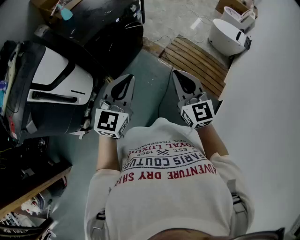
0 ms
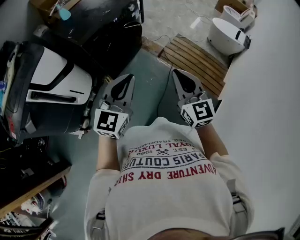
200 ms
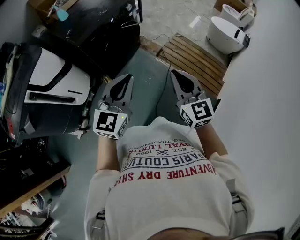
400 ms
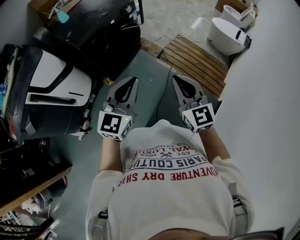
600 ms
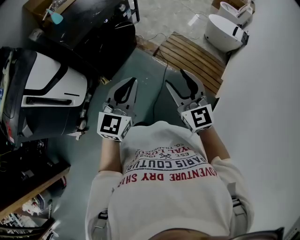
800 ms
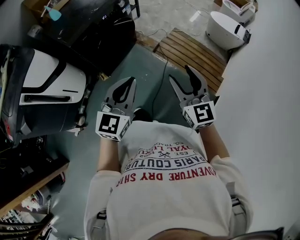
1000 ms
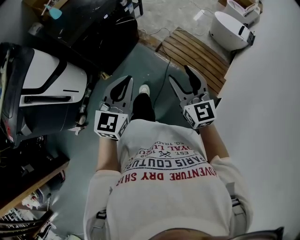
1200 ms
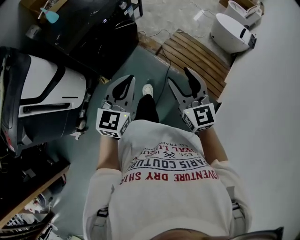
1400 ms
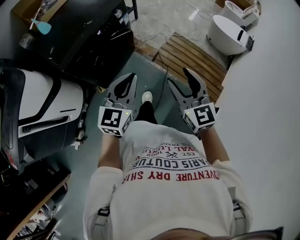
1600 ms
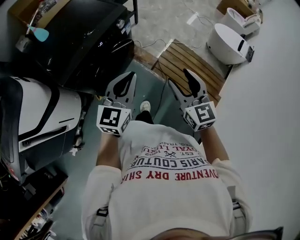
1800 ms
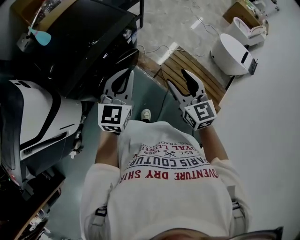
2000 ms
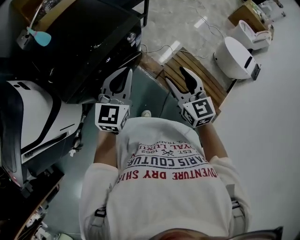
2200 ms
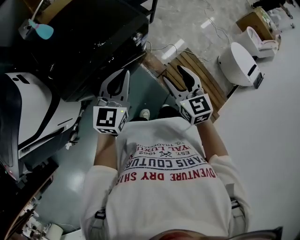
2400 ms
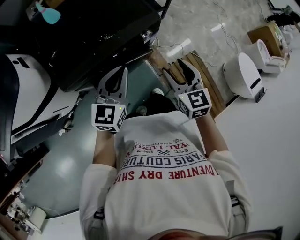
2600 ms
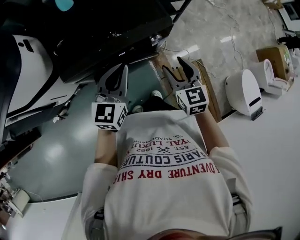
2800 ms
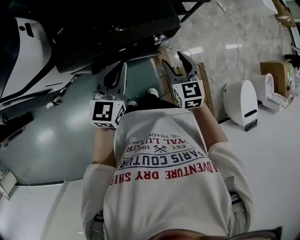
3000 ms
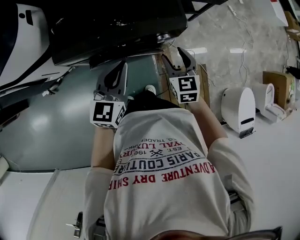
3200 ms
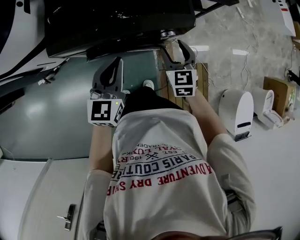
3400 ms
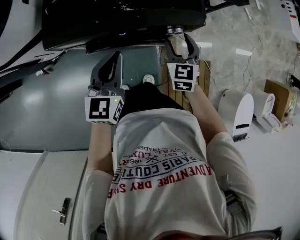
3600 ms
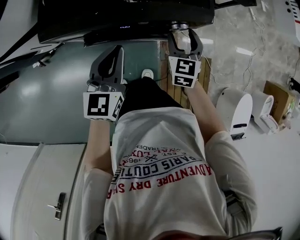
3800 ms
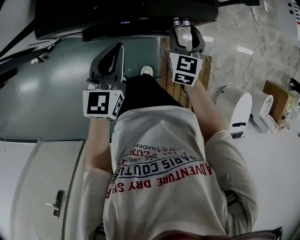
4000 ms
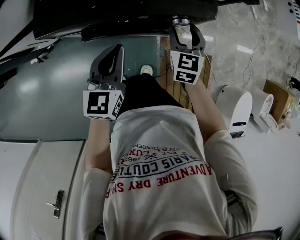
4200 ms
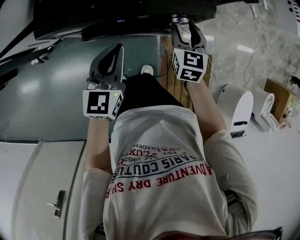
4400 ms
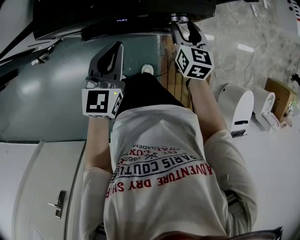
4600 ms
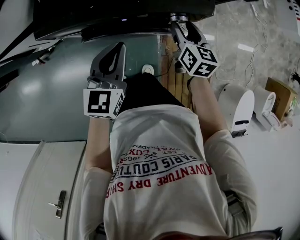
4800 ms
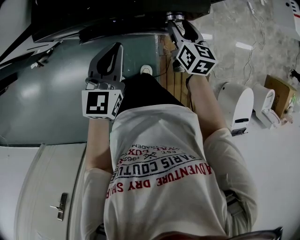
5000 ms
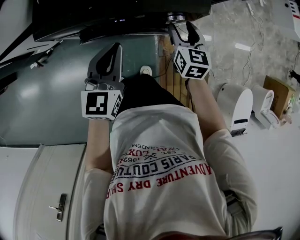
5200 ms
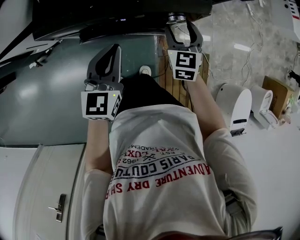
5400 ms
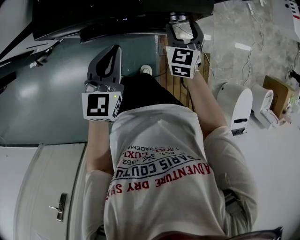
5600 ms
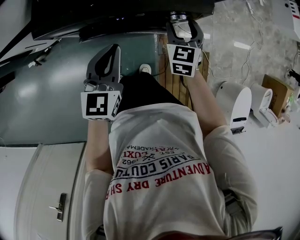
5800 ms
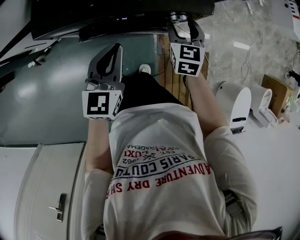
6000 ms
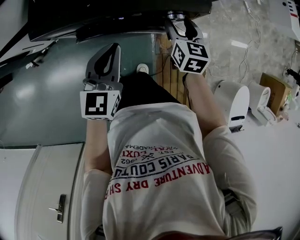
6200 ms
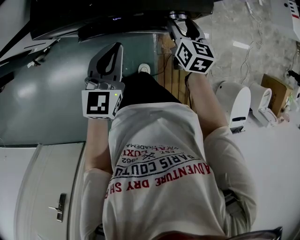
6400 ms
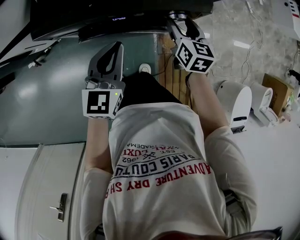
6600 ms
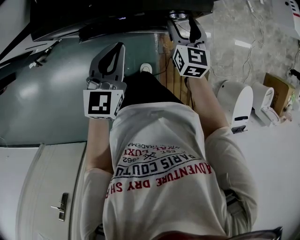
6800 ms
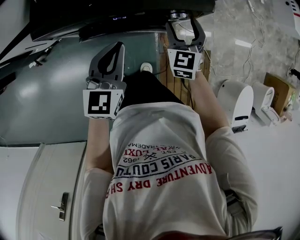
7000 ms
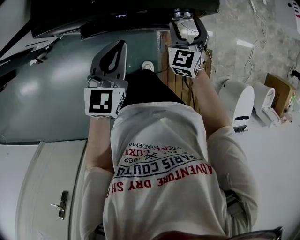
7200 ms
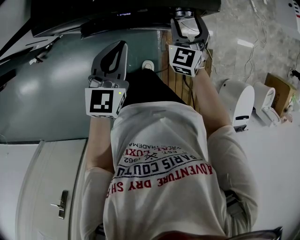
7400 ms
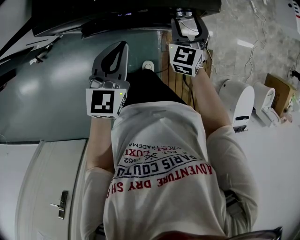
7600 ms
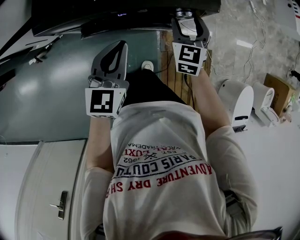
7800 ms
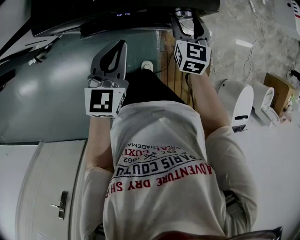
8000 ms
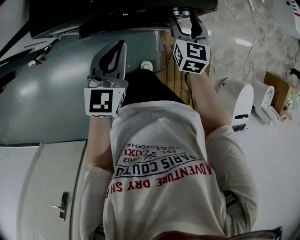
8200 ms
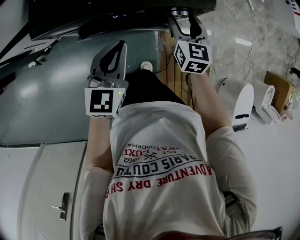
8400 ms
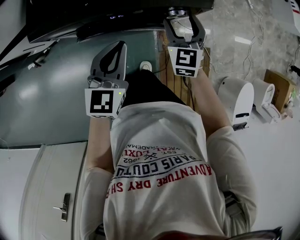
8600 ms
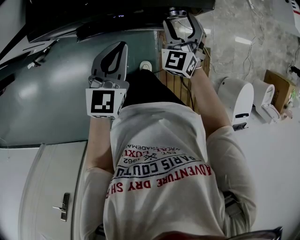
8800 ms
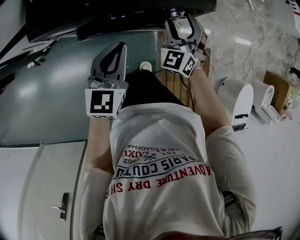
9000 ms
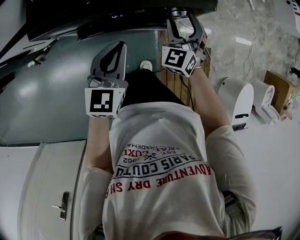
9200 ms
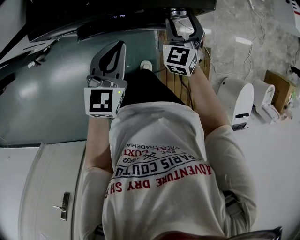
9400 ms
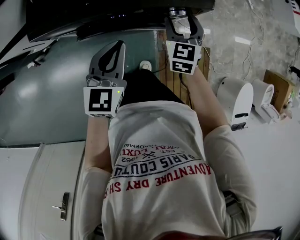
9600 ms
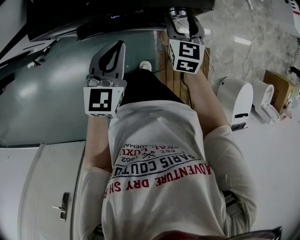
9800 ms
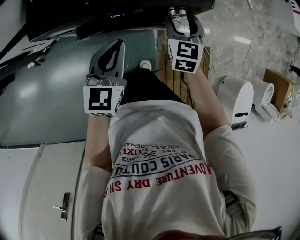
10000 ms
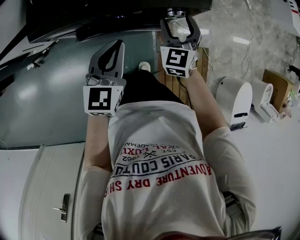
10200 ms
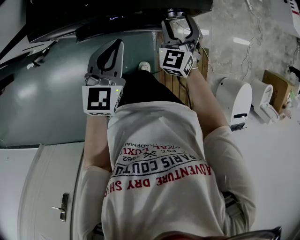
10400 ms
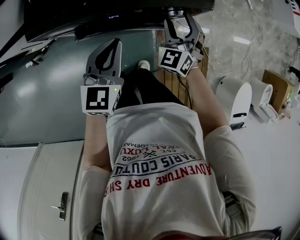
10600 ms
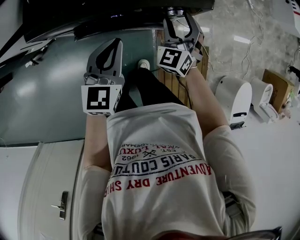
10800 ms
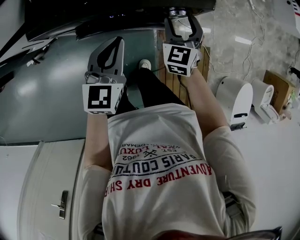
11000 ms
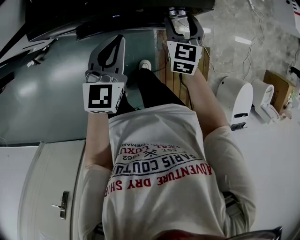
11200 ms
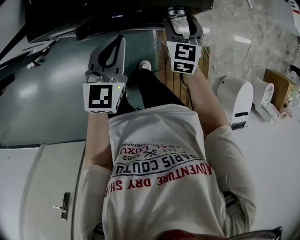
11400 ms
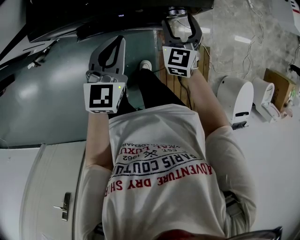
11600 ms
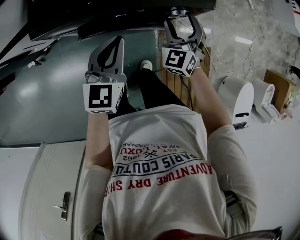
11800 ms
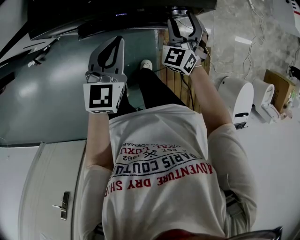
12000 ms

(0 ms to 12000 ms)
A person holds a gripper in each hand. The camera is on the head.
0 ms - 1600 ms: Both grippers travel together forward, about 20 cm. The right gripper opens its fingers.
1600 ms - 3000 ms: The right gripper changes place by some 50 cm, and changes its angle by approximately 40 degrees. The left gripper shifts by approximately 35 cm, and changes its angle by approximately 40 degrees.
3000 ms - 4400 ms: The right gripper shifts roughly 15 cm downward and forward; the left gripper travels downward by approximately 10 cm.

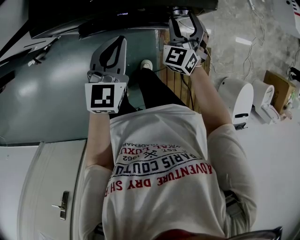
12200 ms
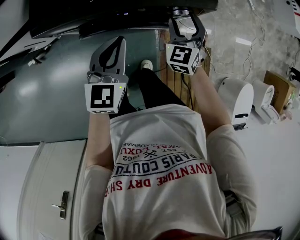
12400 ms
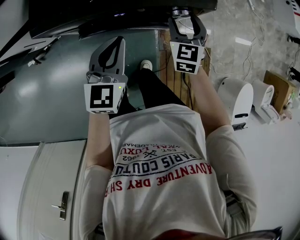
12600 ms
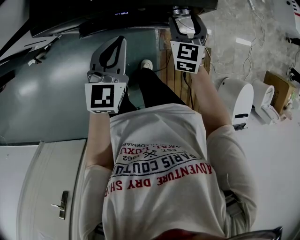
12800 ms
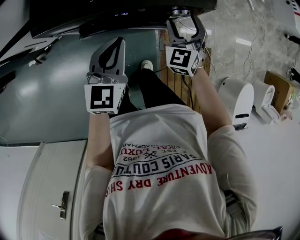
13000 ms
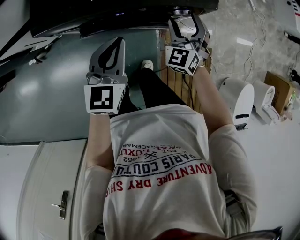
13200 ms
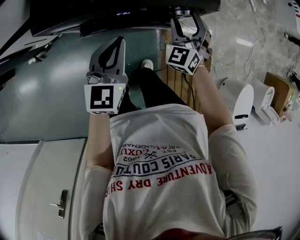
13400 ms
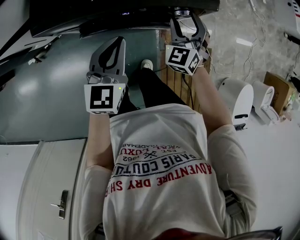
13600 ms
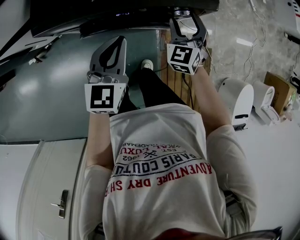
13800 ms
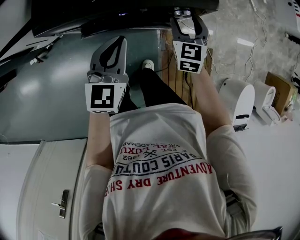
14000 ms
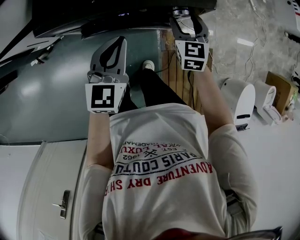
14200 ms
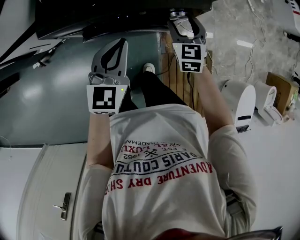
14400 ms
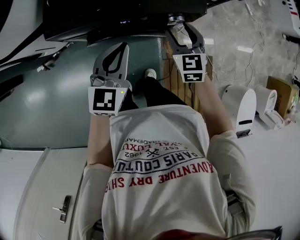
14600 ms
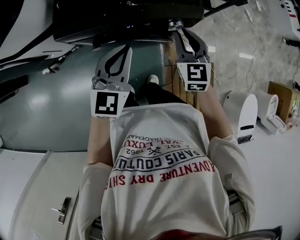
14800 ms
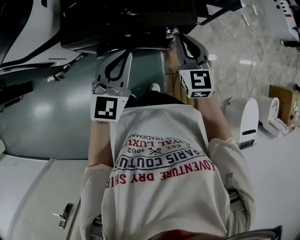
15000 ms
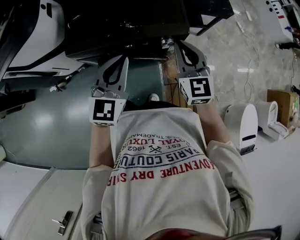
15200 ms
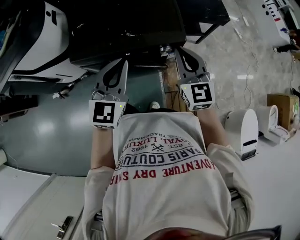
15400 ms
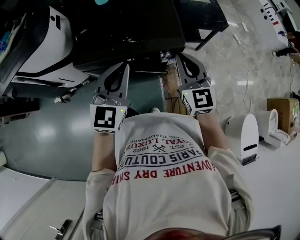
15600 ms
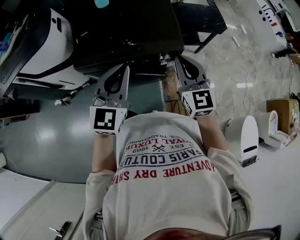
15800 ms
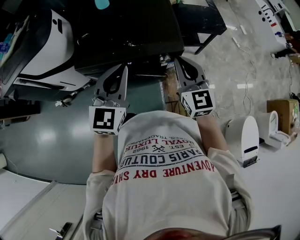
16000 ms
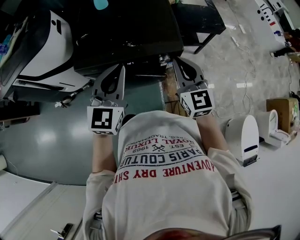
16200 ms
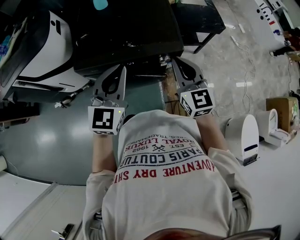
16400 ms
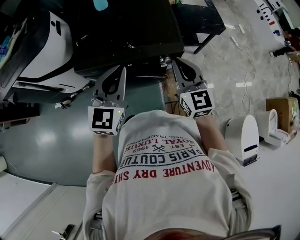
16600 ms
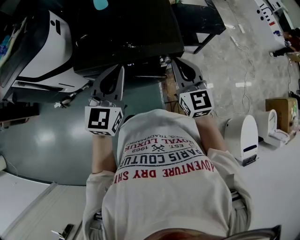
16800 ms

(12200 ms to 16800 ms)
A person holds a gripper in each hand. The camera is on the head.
13800 ms - 15200 ms: Both grippers travel together upward, about 20 cm. The right gripper swivels approximately 30 degrees, and closes its fingers.
15200 ms - 16800 ms: The left gripper shifts approximately 5 cm upward.

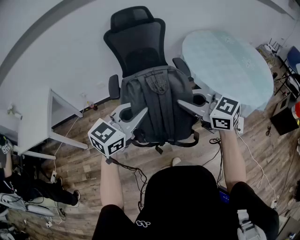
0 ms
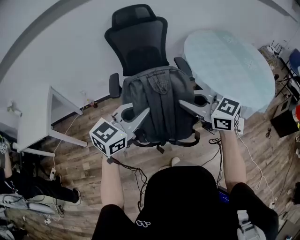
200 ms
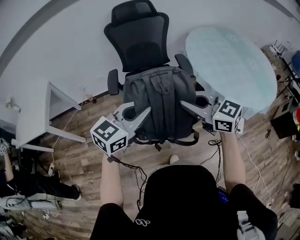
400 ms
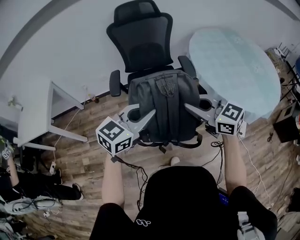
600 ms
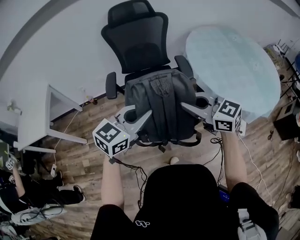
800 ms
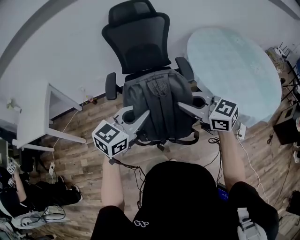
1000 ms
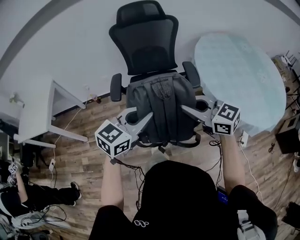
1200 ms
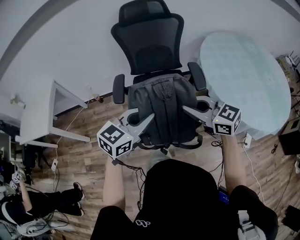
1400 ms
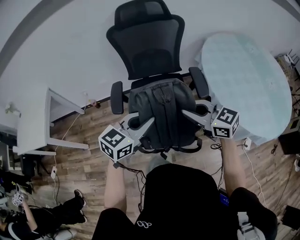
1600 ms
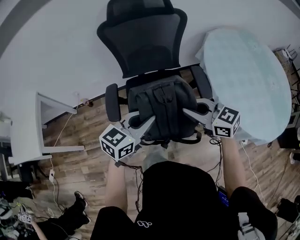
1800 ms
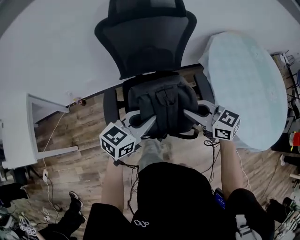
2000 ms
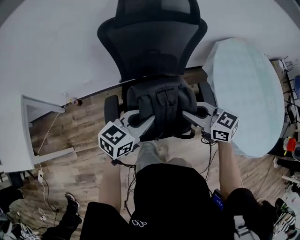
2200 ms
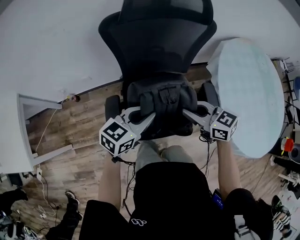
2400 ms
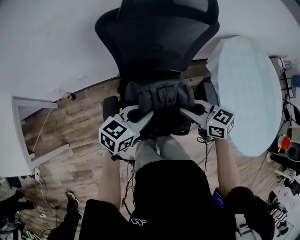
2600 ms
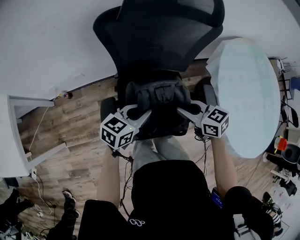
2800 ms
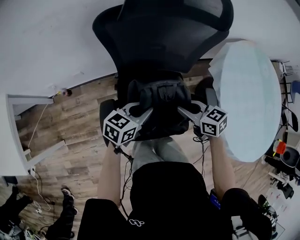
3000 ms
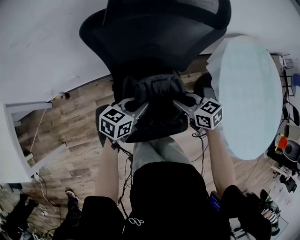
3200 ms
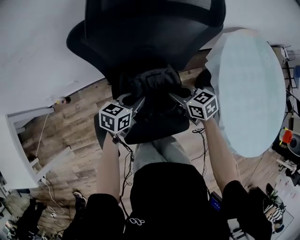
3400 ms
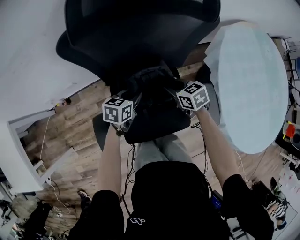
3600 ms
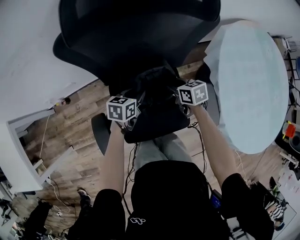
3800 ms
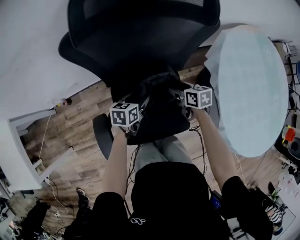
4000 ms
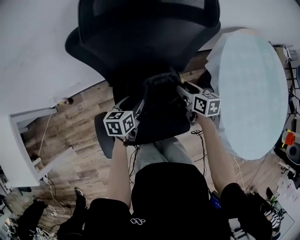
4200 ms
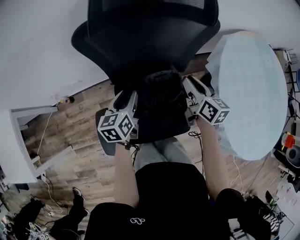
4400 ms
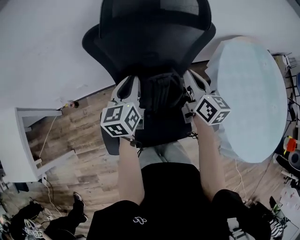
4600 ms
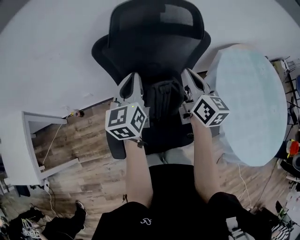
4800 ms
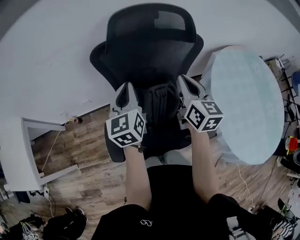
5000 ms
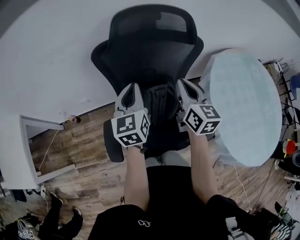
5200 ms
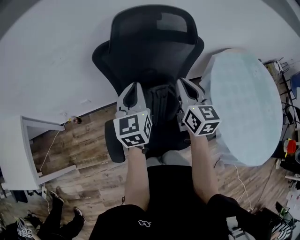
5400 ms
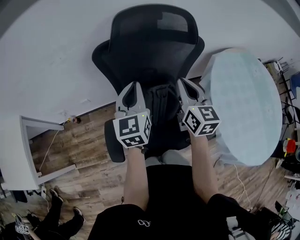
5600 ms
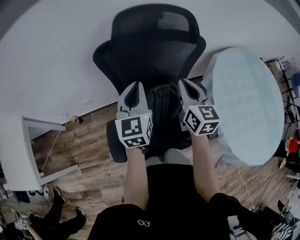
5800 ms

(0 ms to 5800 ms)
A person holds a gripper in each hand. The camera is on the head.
0 ms - 1400 ms: The two grippers go approximately 15 cm forward and downward.
1400 ms - 2800 ms: Both grippers move forward and downward, approximately 40 cm. The right gripper turns by roughly 30 degrees; the left gripper turns by some 30 degrees.
2800 ms - 4400 ms: The right gripper moves forward and to the right, some 20 cm, travels downward and back again, some 15 cm each way, changes its angle by about 40 degrees, and opens and closes again; the left gripper moves forward, about 15 cm, goes downward and returns, approximately 15 cm each way, changes its angle by about 40 degrees, and opens.
4400 ms - 5800 ms: The left gripper goes roughly 20 cm upward, turns by roughly 30 degrees, and closes. The right gripper is displaced upward and to the left by about 15 cm, swivels about 30 degrees, and closes its fingers.

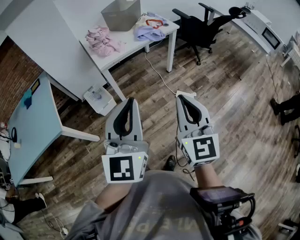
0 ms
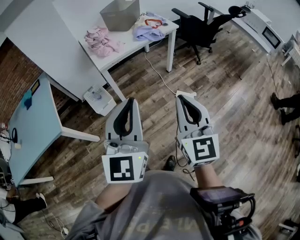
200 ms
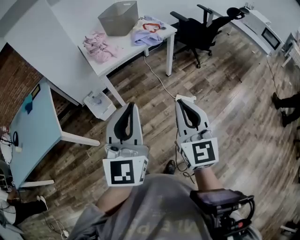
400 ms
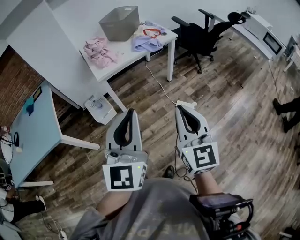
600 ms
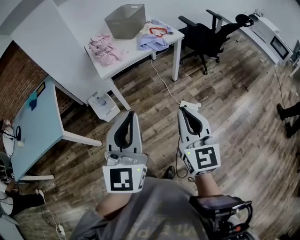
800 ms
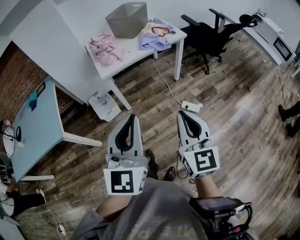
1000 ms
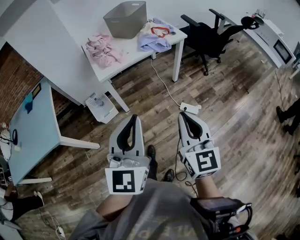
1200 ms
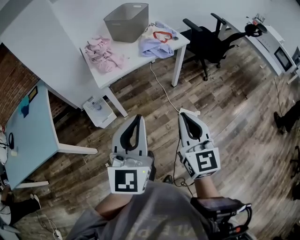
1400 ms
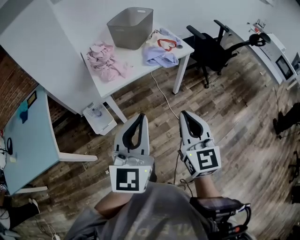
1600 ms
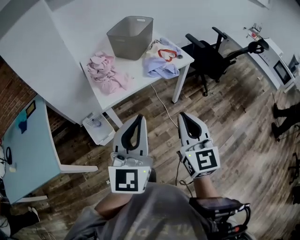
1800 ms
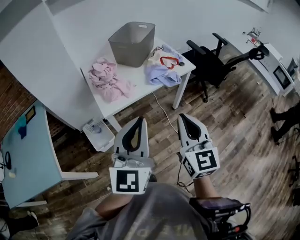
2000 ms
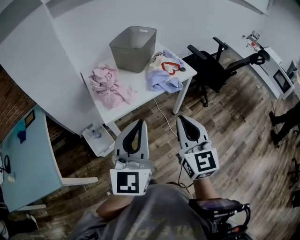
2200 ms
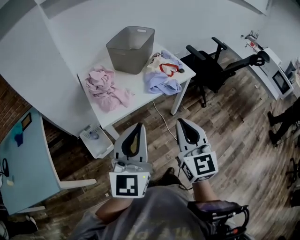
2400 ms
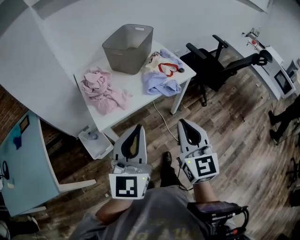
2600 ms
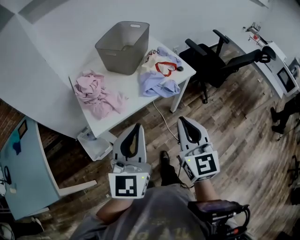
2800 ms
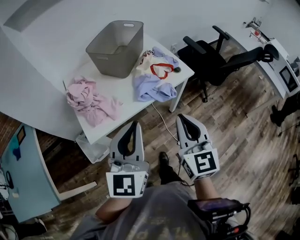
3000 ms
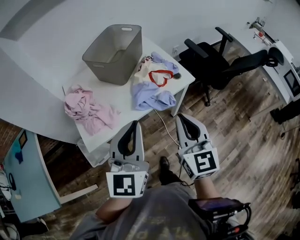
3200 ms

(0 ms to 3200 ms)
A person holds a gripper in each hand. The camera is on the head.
0 ms - 1600 ms: Both grippers travel together forward, roughly 20 cm.
1600 ms - 3200 ms: Both grippers move forward, approximately 30 cm.
